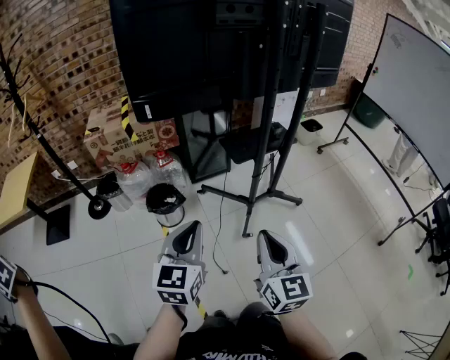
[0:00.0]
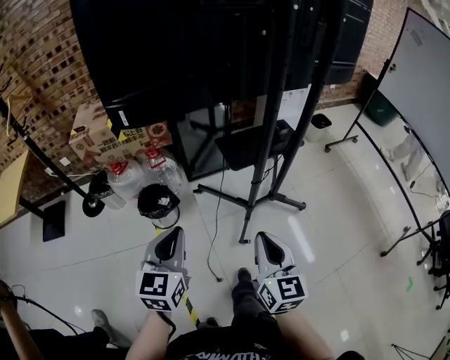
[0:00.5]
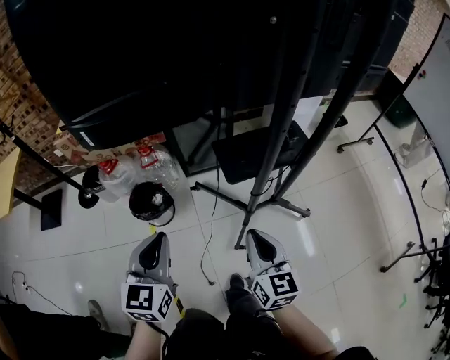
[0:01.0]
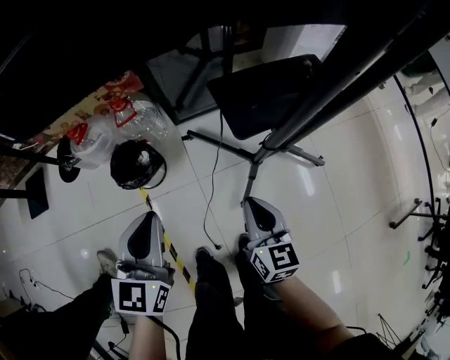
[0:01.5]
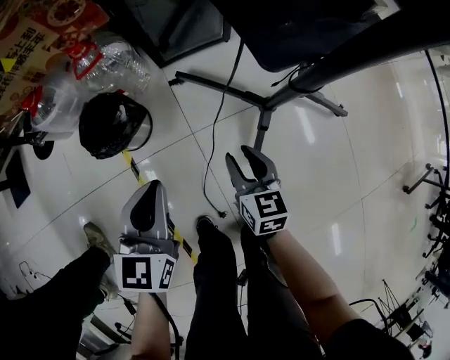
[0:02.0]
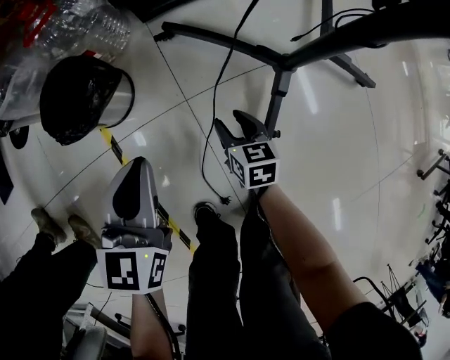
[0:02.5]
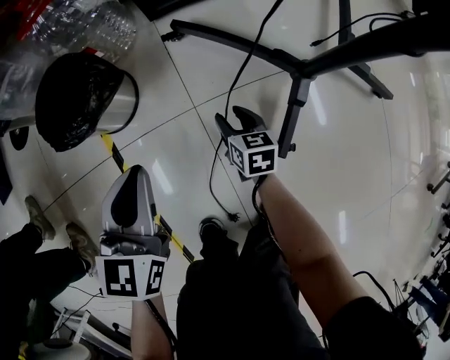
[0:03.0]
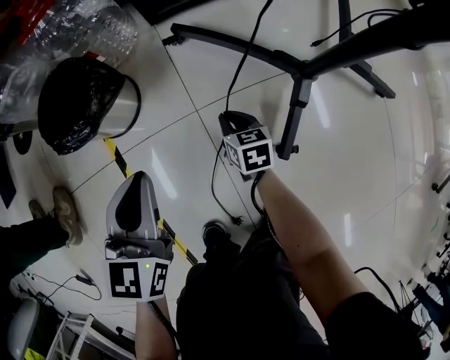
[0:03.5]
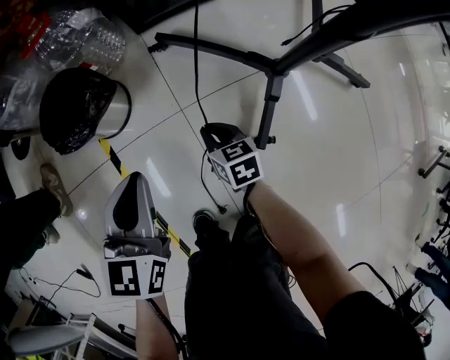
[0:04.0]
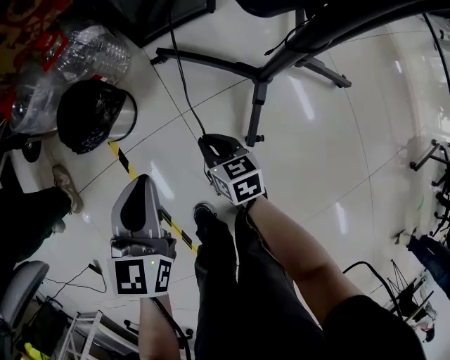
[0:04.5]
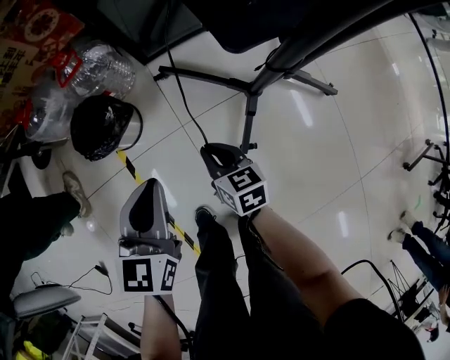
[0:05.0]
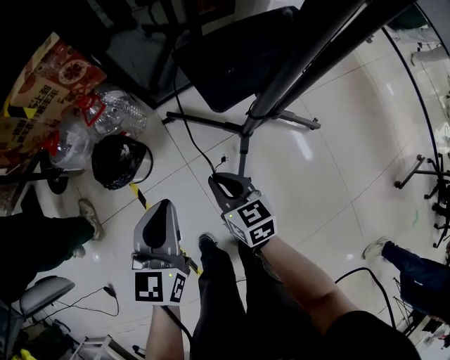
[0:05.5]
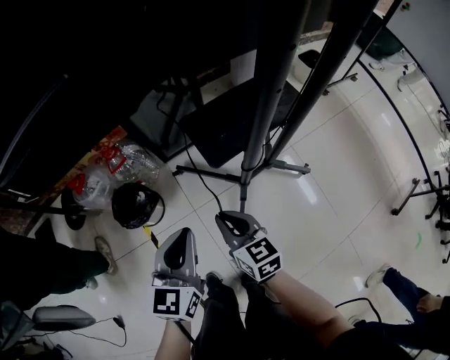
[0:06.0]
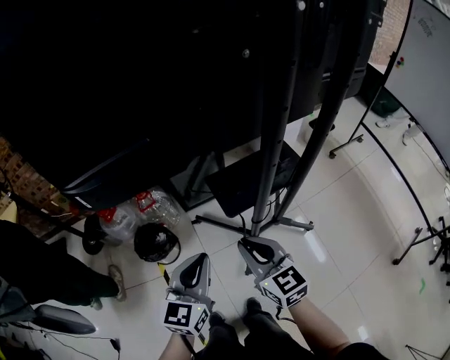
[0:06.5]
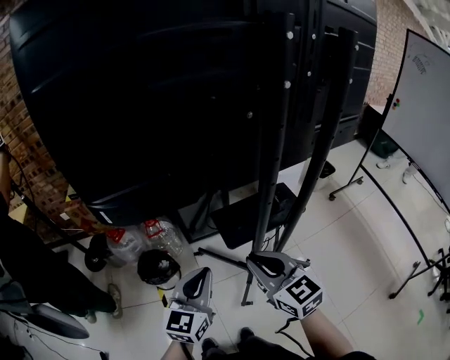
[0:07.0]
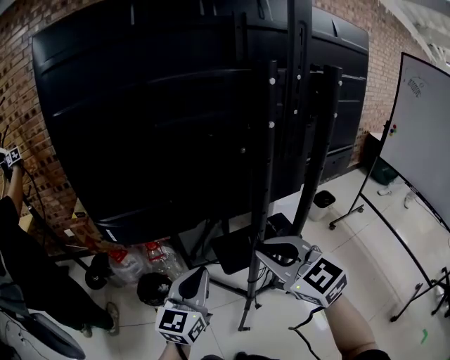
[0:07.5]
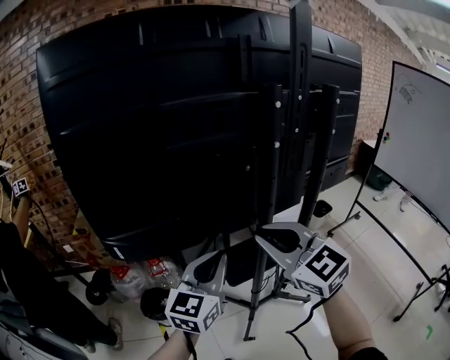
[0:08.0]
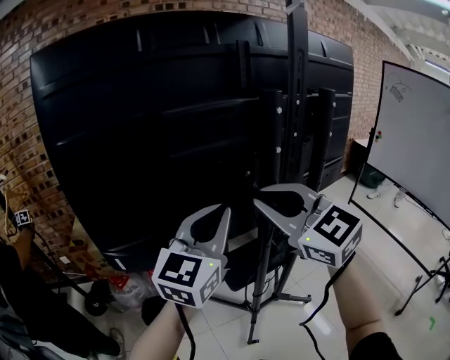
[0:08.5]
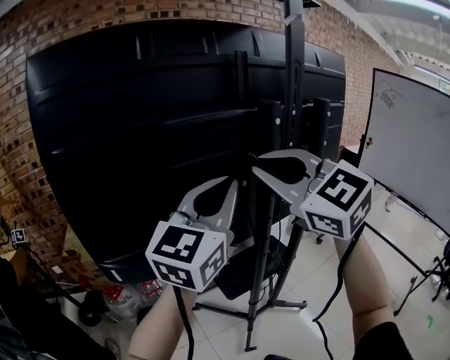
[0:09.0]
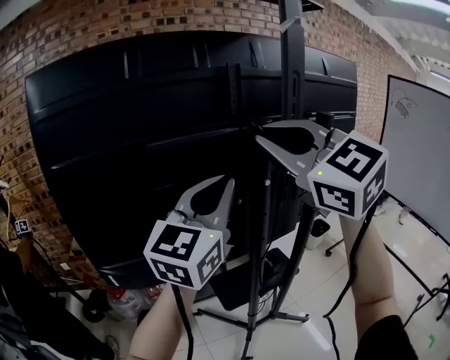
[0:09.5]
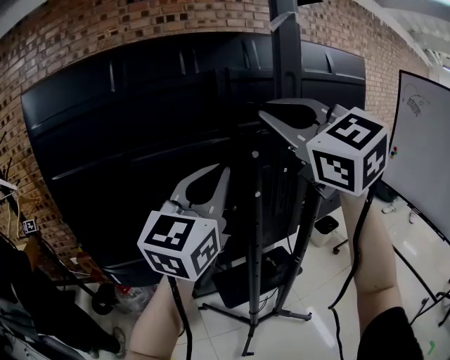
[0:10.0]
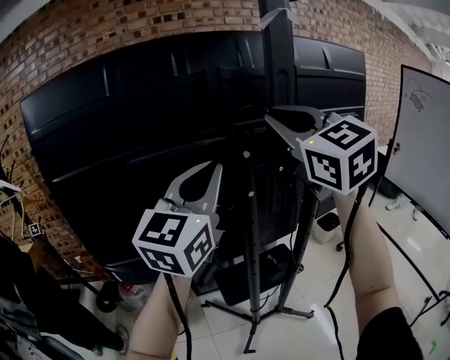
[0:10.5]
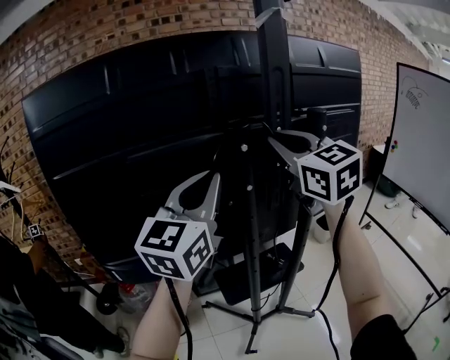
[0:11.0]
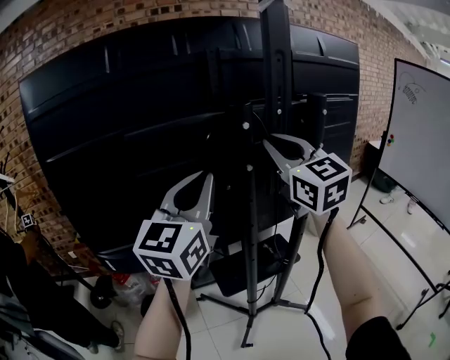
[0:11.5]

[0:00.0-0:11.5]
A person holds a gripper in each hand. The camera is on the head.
0:00.0 to 0:02.0: Both grippers move downward and forward, roughly 50 cm. The right gripper rotates about 30 degrees, and opens.
0:02.0 to 0:04.0: The right gripper is displaced downward by some 25 cm, turns by roughly 20 degrees, and closes its fingers, while the left gripper is displaced downward by roughly 15 cm.
0:04.0 to 0:06.0: The left gripper shifts approximately 35 cm upward and to the right. Meanwhile the right gripper moves upward, approximately 50 cm, and turns by roughly 20 degrees.
0:06.0 to 0:07.5: The left gripper heads upward, covering about 20 cm. The right gripper travels upward by about 40 cm, and swivels approximately 40 degrees.
0:07.5 to 0:09.5: The two grippers go roughly 35 cm upward. The left gripper turns by approximately 20 degrees; the right gripper swivels about 20 degrees.
0:09.5 to 0:11.5: The right gripper shifts some 15 cm downward, forward and to the right, and swivels some 20 degrees.

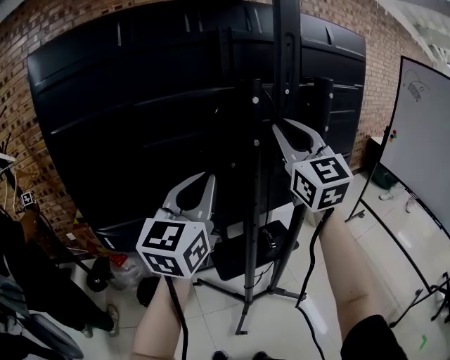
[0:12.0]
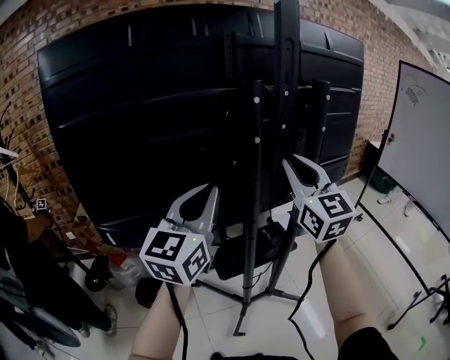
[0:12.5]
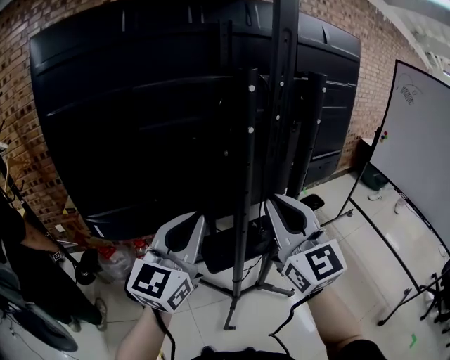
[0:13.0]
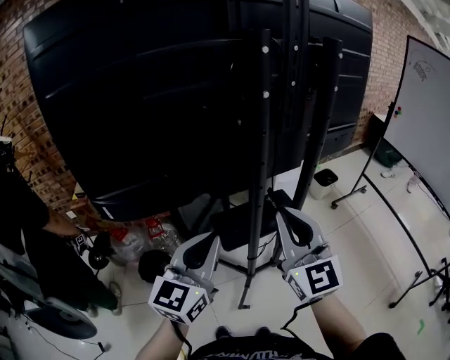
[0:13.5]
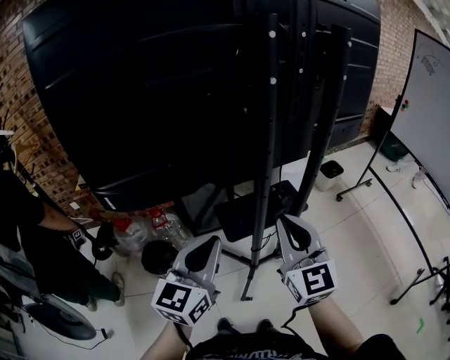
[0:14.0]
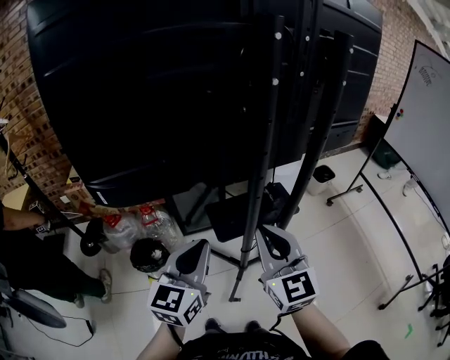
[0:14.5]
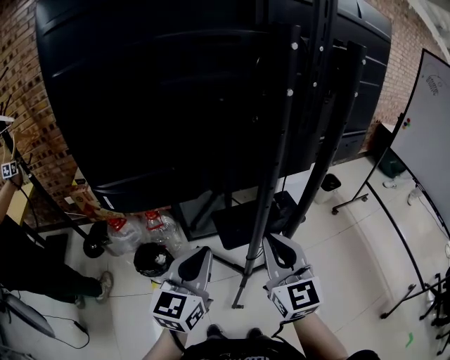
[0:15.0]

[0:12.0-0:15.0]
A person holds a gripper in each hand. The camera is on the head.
0:12.0 to 0:13.5: Both grippers travel together downward and backward, roughly 25 cm.
0:13.5 to 0:15.0: The two grippers go about 5 cm downward.

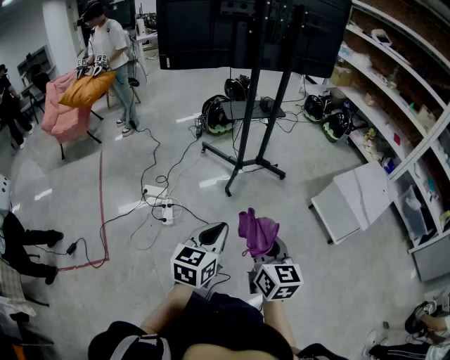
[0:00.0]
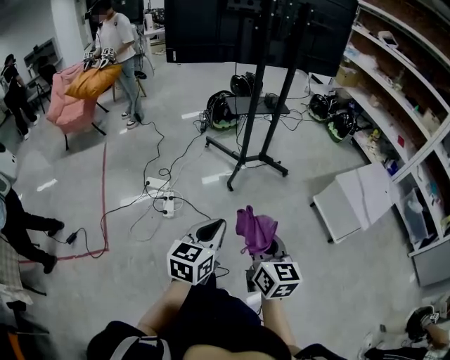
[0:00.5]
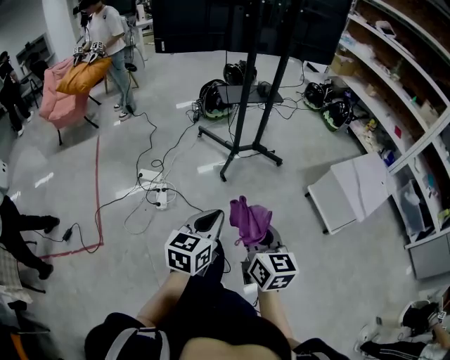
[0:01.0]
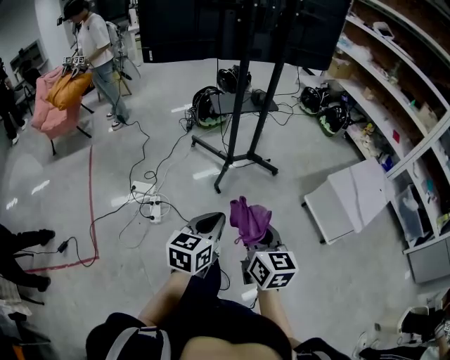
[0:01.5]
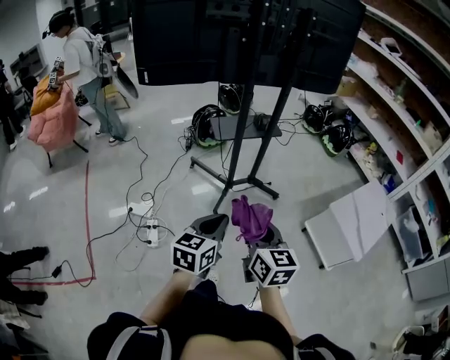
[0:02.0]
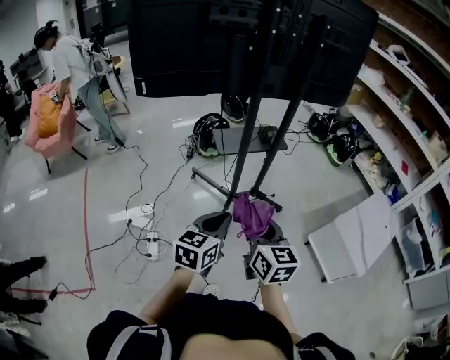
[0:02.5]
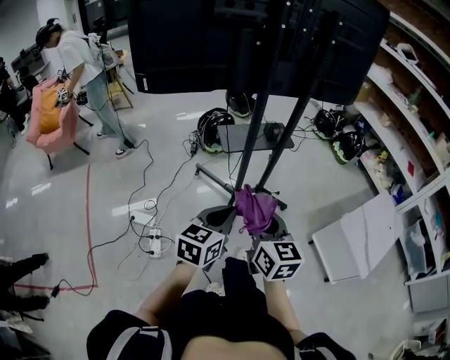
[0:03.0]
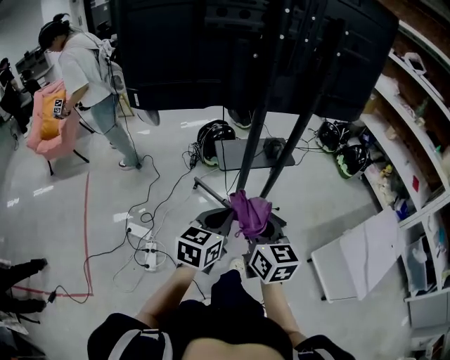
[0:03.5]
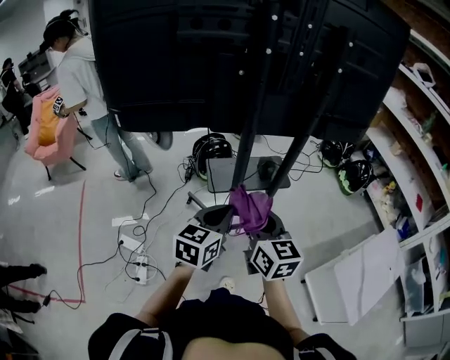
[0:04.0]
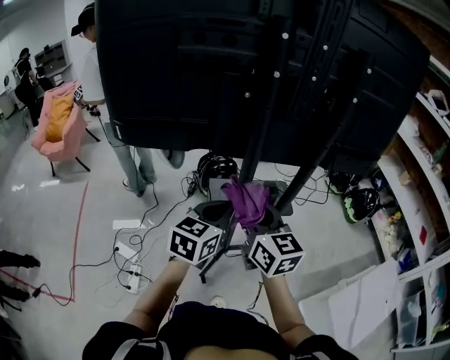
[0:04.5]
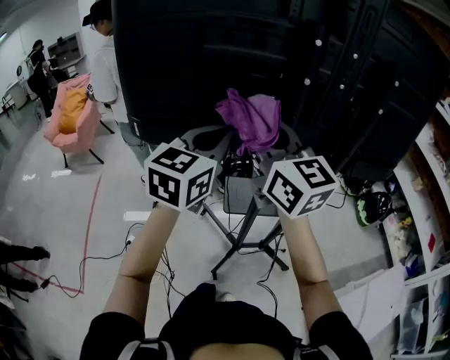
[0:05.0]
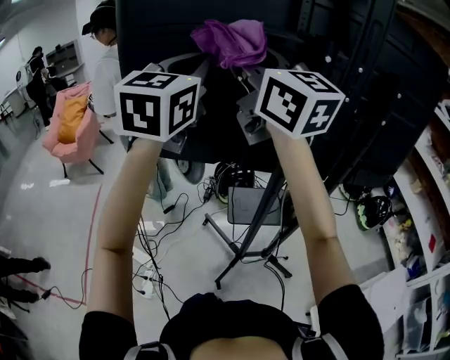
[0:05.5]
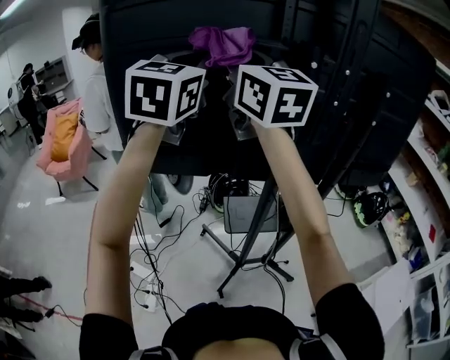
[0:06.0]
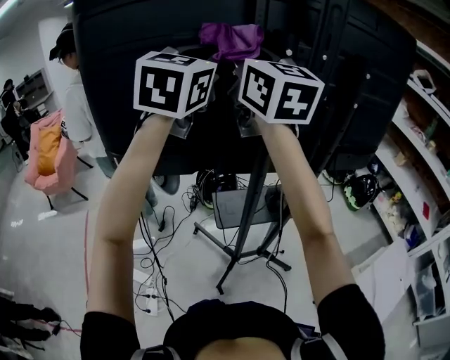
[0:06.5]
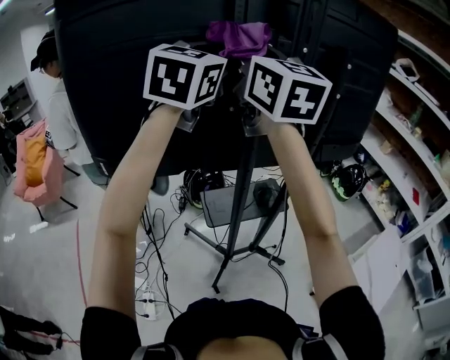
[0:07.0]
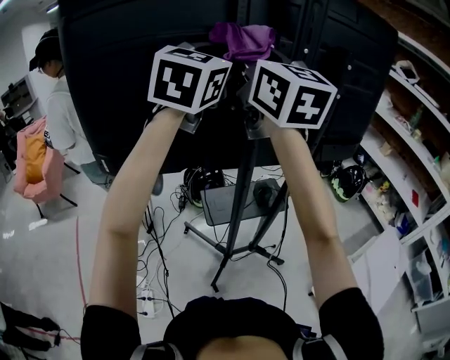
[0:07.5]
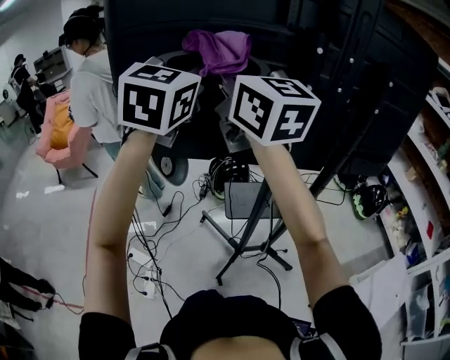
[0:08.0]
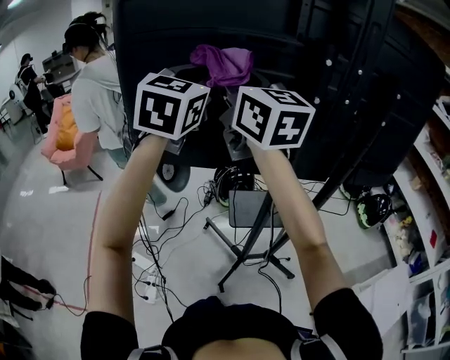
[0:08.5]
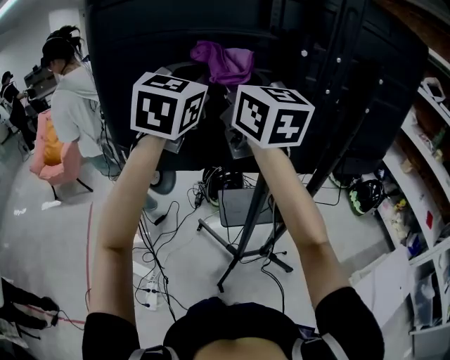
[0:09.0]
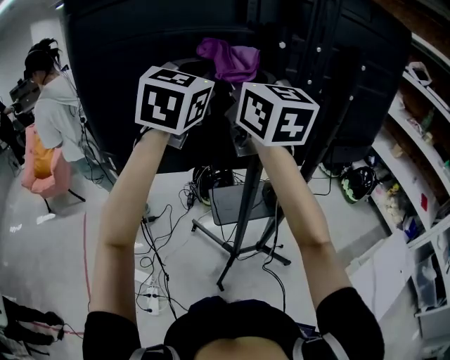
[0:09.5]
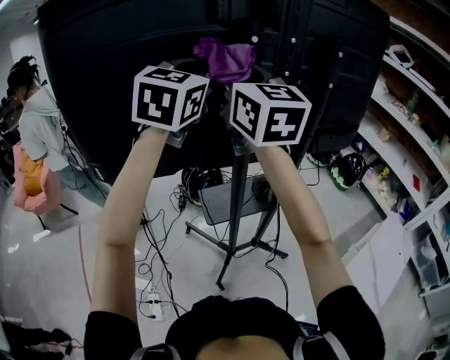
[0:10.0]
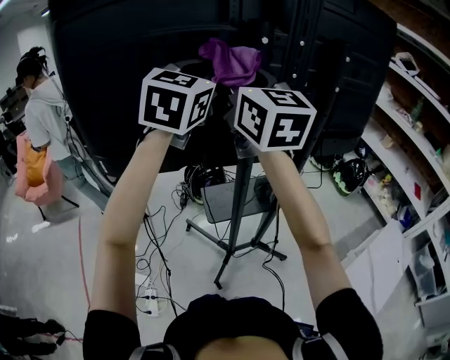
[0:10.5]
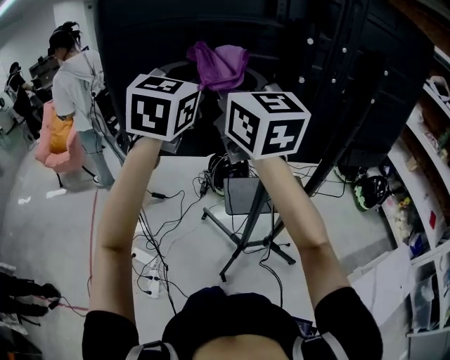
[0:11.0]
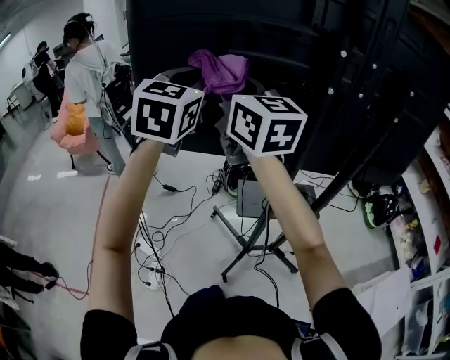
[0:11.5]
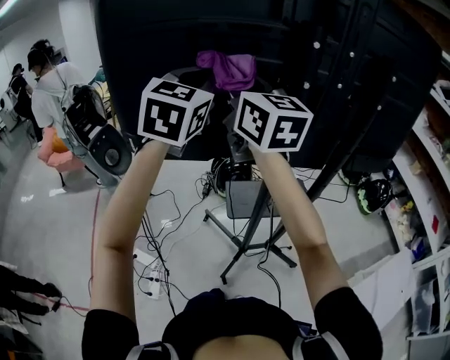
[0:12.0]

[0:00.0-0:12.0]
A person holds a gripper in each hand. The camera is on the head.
0:00.0 to 0:02.0: Both grippers travel together forward, about 25 cm.
0:02.0 to 0:04.0: The grippers both shift forward by approximately 40 cm.
0:04.0 to 0:06.0: The two grippers go roughly 40 cm upward. The left gripper swivels about 40 degrees. The right gripper rotates approximately 40 degrees.
0:06.0 to 0:08.0: The right gripper moves roughly 10 cm to the right and comes back; the left gripper travels to the right and back again, approximately 15 cm each way.
0:08.0 to 0:10.0: Both grippers travel together to the right, some 15 cm. The right gripper rotates roughly 20 degrees.
0:10.0 to 0:12.0: The two grippers go approximately 10 cm to the left.
